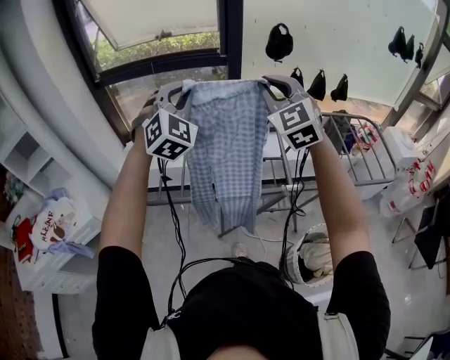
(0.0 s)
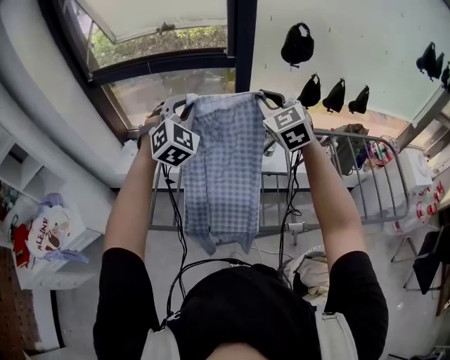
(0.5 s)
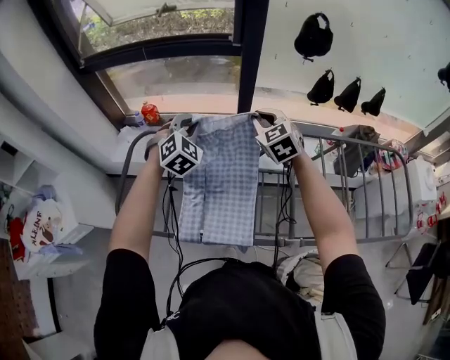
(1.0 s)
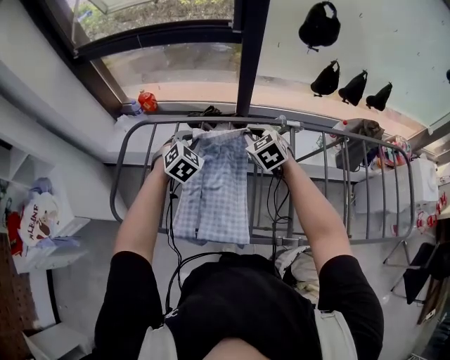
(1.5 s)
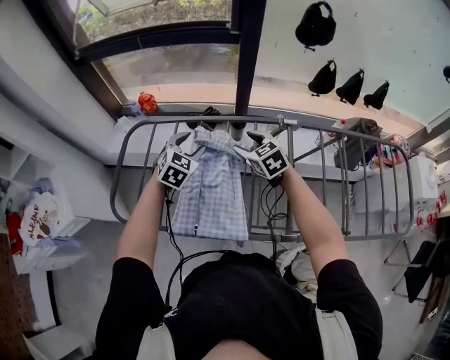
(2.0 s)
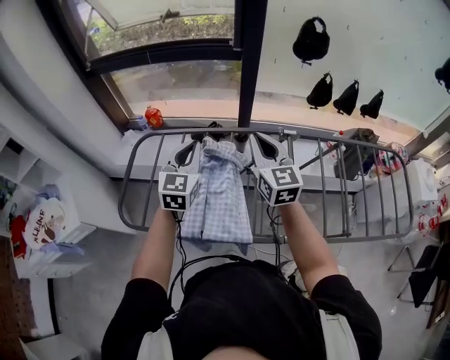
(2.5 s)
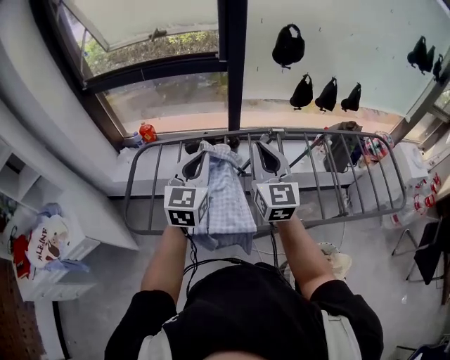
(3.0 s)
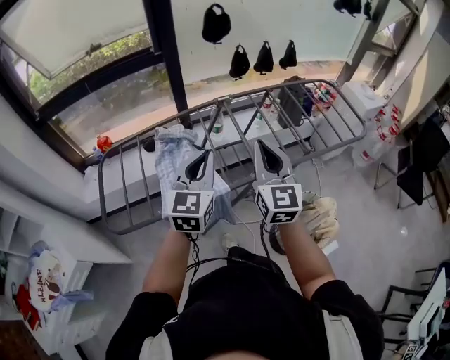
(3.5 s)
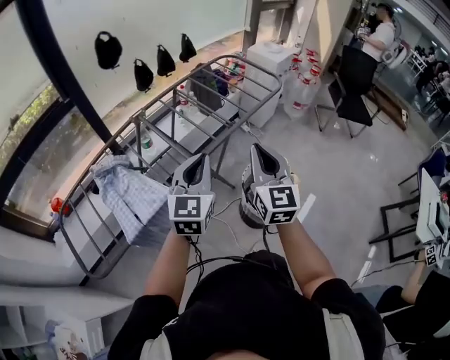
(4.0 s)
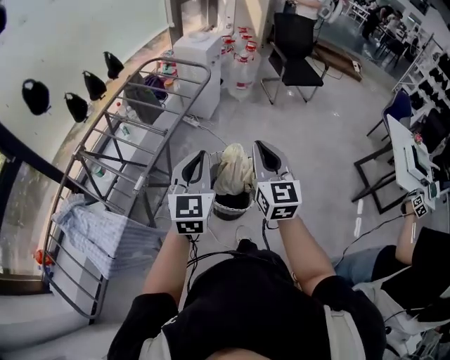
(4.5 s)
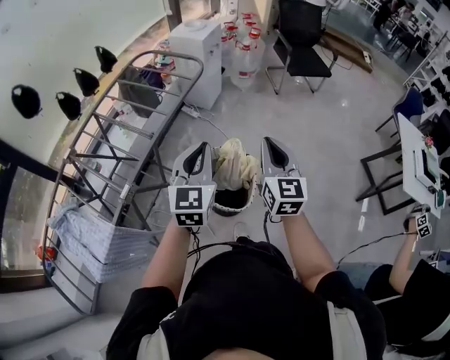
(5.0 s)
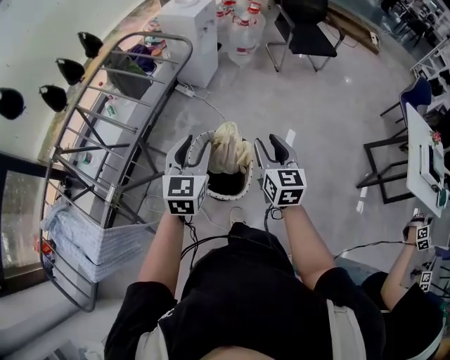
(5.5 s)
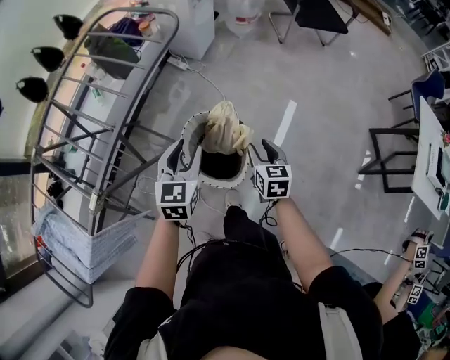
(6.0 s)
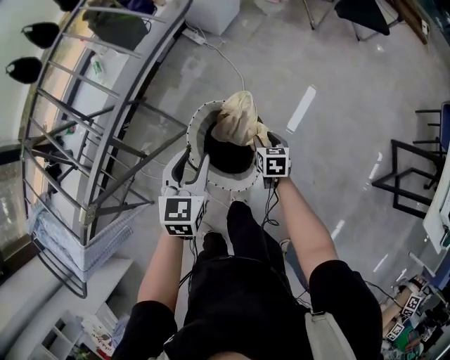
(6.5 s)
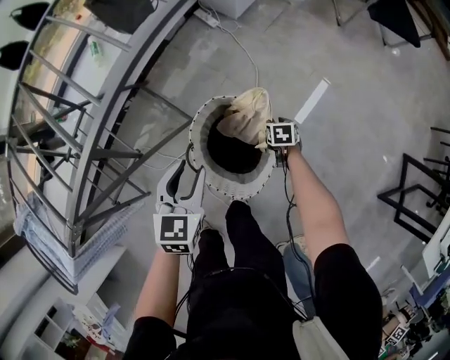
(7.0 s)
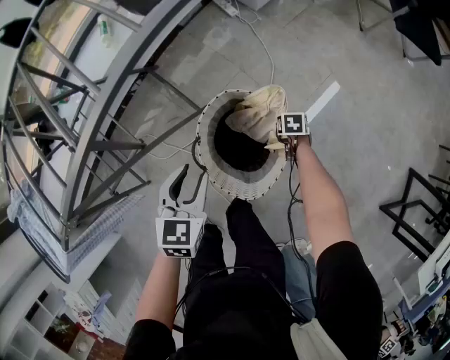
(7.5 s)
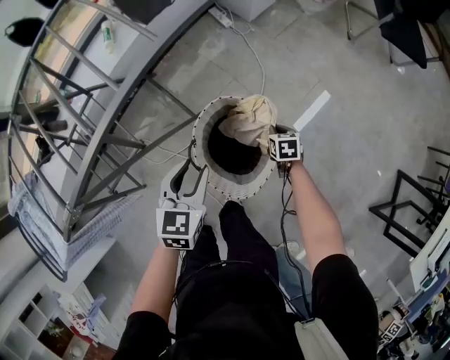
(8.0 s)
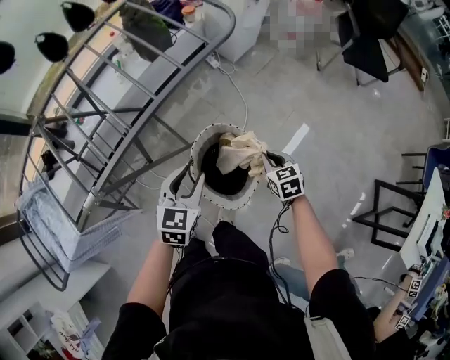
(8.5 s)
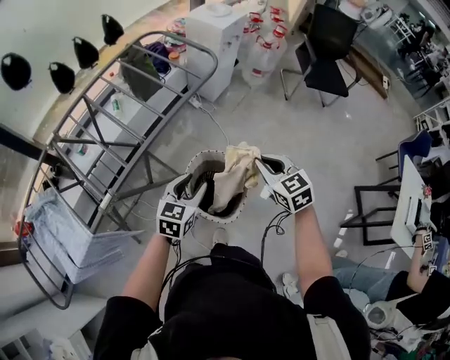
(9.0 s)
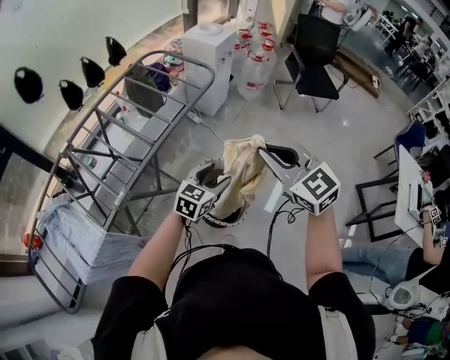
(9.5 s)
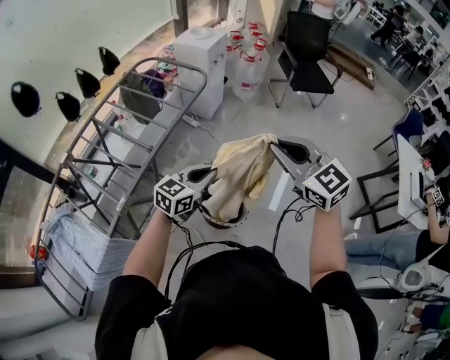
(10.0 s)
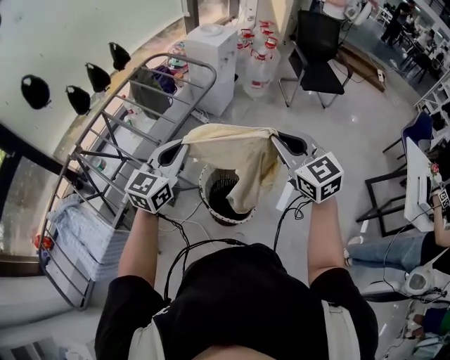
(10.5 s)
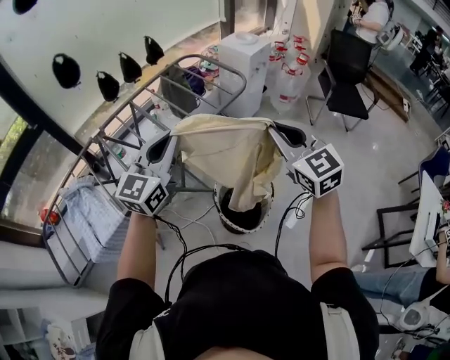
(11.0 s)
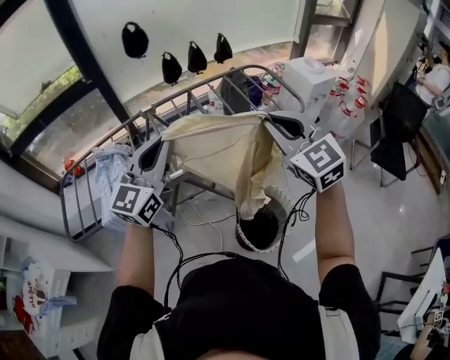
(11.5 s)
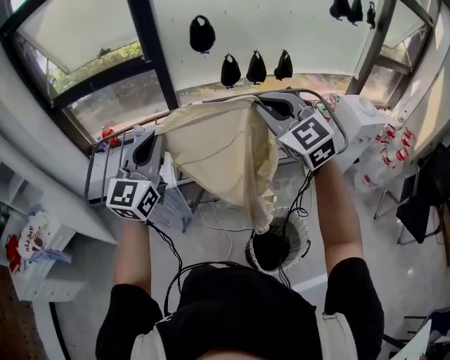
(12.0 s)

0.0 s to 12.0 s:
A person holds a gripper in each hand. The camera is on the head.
0.0 to 2.0 s: Both grippers travel together downward and forward, approximately 40 cm. The left gripper changes its angle by some 40 degrees, and opens up. Meanwhile the right gripper angles its fingers downward, by roughly 40 degrees, and opens.
2.0 to 4.0 s: The two grippers travel together, about 50 cm. The left gripper tips its fingers upward by approximately 30 degrees, and closes; the right gripper tilts its fingers roughly 40 degrees upward, and closes its fingers.
4.0 to 6.0 s: The right gripper goes roughly 50 cm to the right, downward and forward, tips its fingers downward by approximately 40 degrees, and opens up; the left gripper moves to the right, forward and downward, approximately 40 cm, rotates roughly 30 degrees, and opens its fingers.
6.0 to 8.0 s: The right gripper shifts approximately 30 cm downward, changes its angle by approximately 30 degrees, and closes its fingers. The left gripper goes roughly 15 cm downward.
8.0 to 10.0 s: The right gripper moves upward, roughly 70 cm, and tilts its fingers approximately 50 degrees upward; the left gripper moves upward, approximately 25 cm, rotates roughly 50 degrees, and closes its fingers.
10.0 to 12.0 s: The left gripper changes place by some 50 cm, and changes its angle by some 90 degrees. Meanwhile the right gripper shifts by some 40 cm, and changes its angle by about 50 degrees.

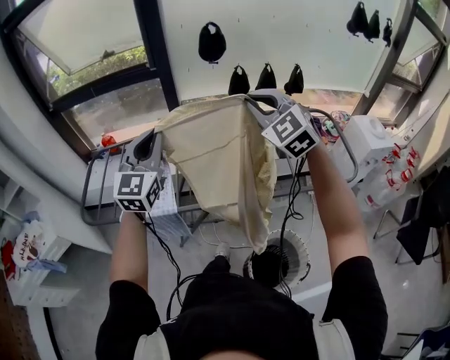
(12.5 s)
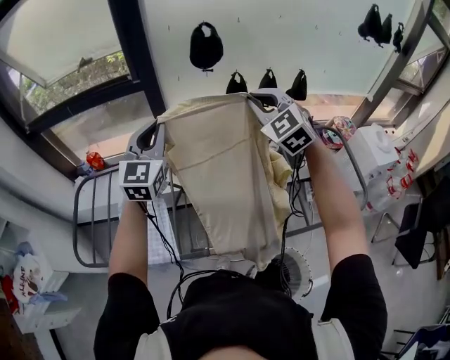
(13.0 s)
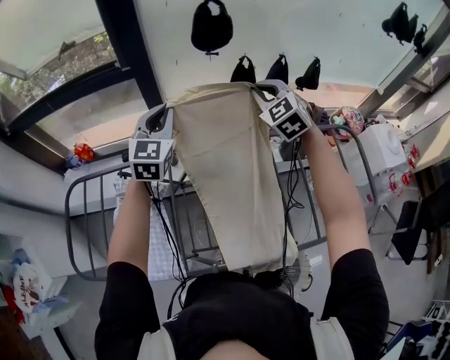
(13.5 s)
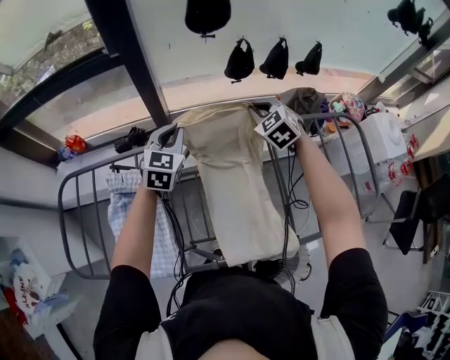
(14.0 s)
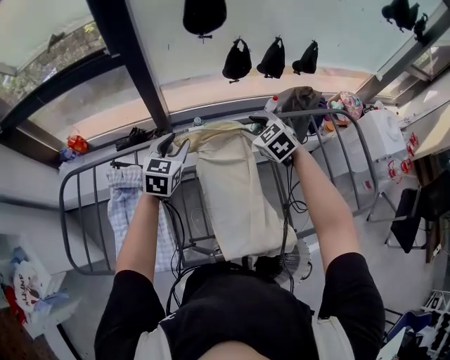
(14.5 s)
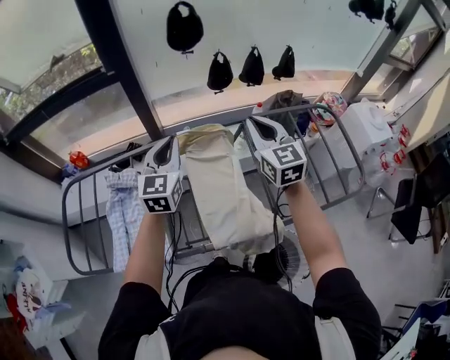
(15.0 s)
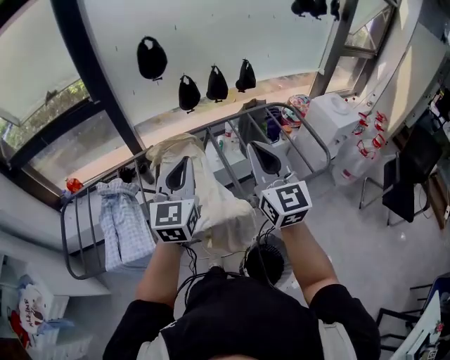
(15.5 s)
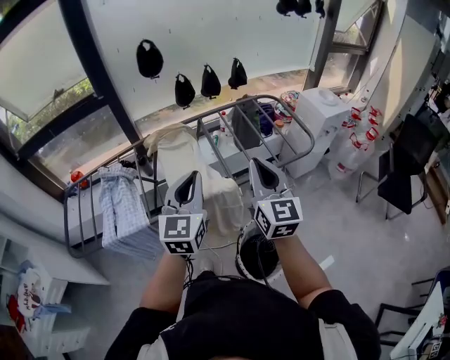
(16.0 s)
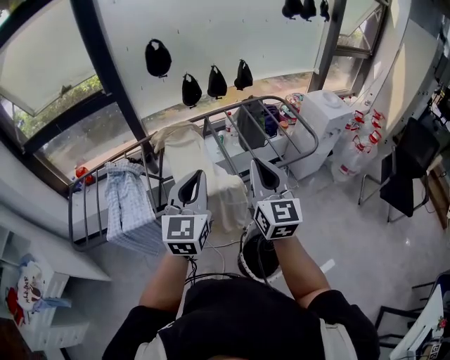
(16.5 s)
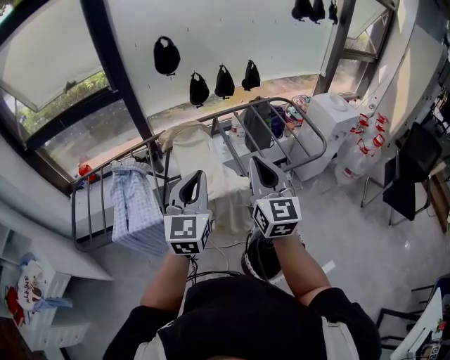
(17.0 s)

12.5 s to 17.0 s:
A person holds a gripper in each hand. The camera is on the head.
12.5 to 14.5 s: The left gripper moves forward and downward, about 40 cm, angles its fingers downward, by some 30 degrees, and opens its fingers. Meanwhile the right gripper heads downward and forward, covering roughly 40 cm, tilts its fingers some 30 degrees downward, and opens its fingers.
14.5 to 17.0 s: Both grippers are carried backward, approximately 50 cm. The two grippers go roughly 20 cm upward. The left gripper turns by some 20 degrees, and closes up. Meanwhile the right gripper angles its fingers upward, by approximately 50 degrees, and closes.

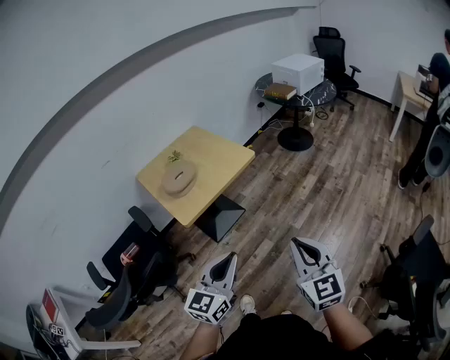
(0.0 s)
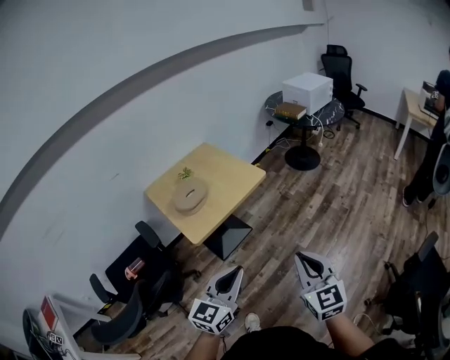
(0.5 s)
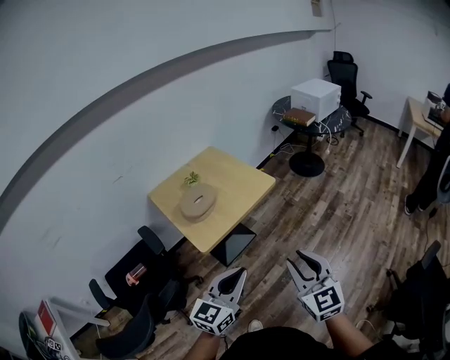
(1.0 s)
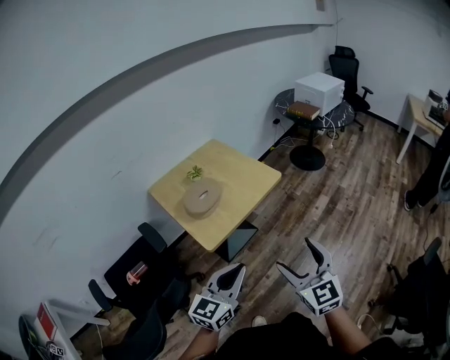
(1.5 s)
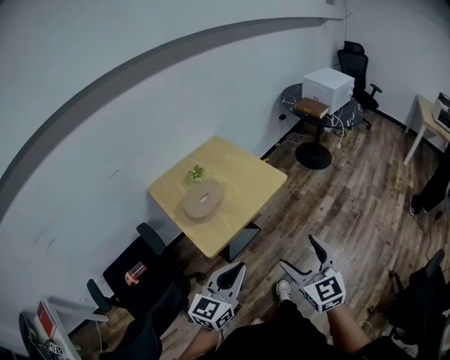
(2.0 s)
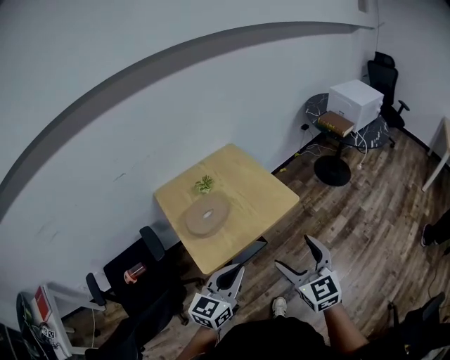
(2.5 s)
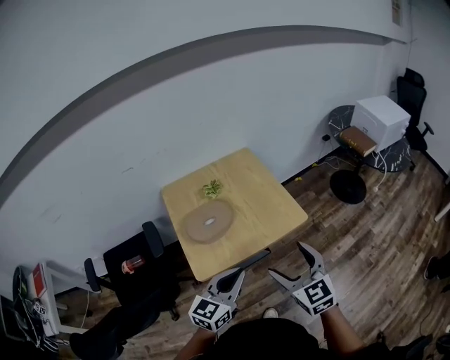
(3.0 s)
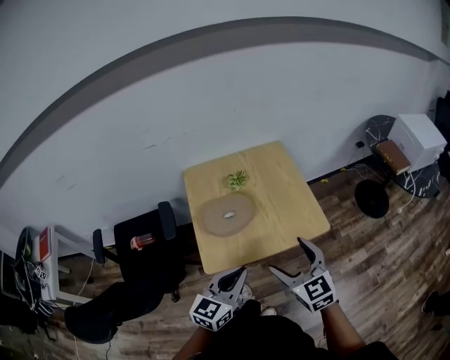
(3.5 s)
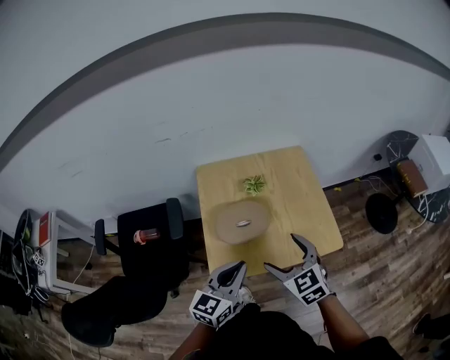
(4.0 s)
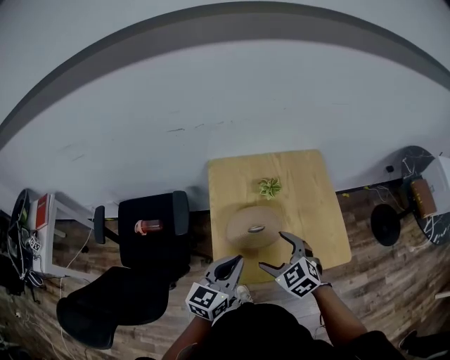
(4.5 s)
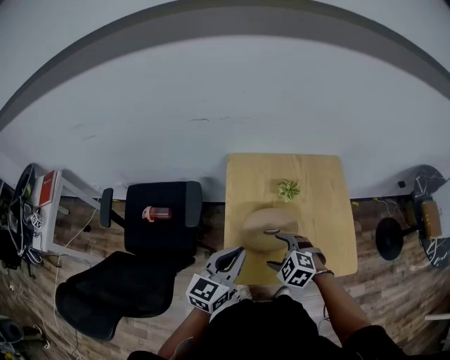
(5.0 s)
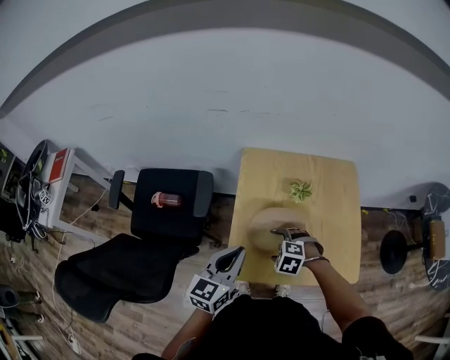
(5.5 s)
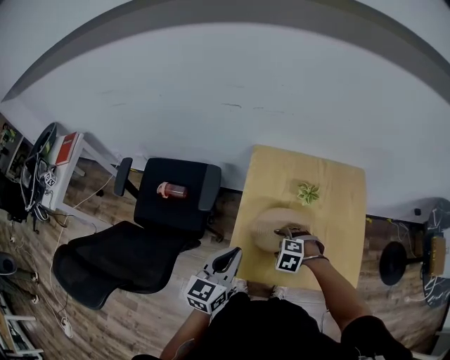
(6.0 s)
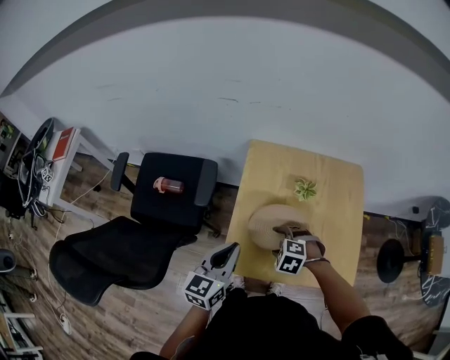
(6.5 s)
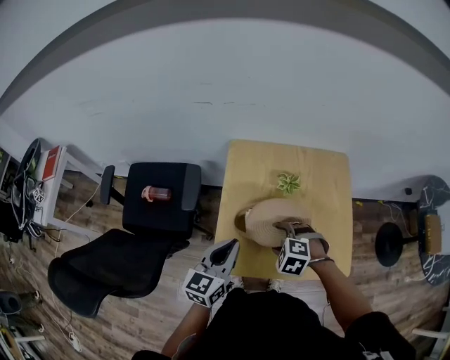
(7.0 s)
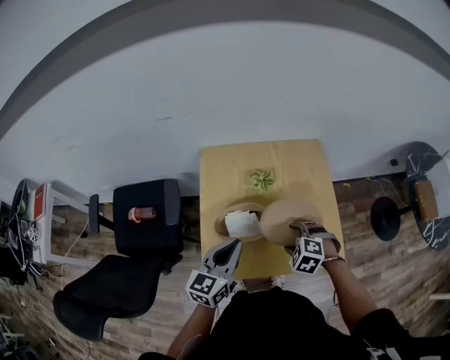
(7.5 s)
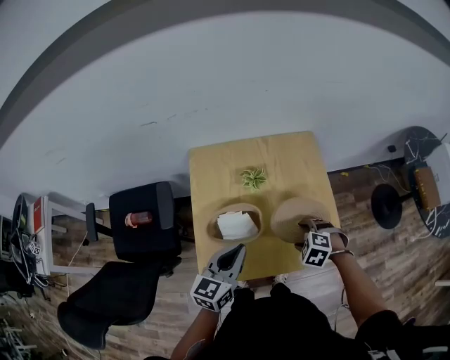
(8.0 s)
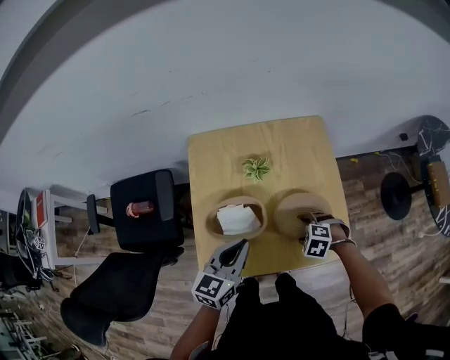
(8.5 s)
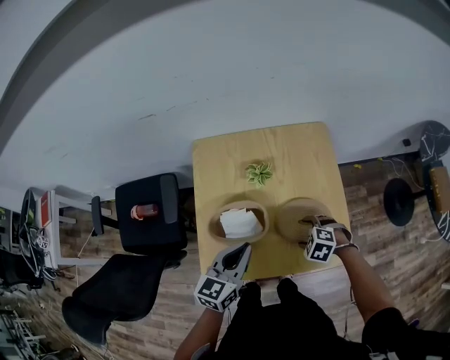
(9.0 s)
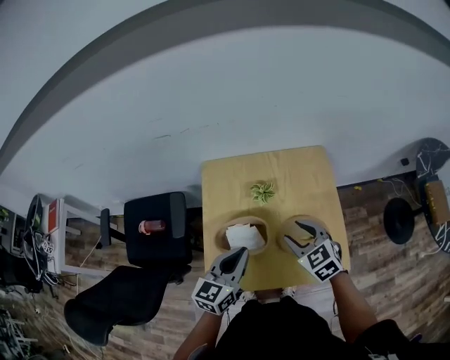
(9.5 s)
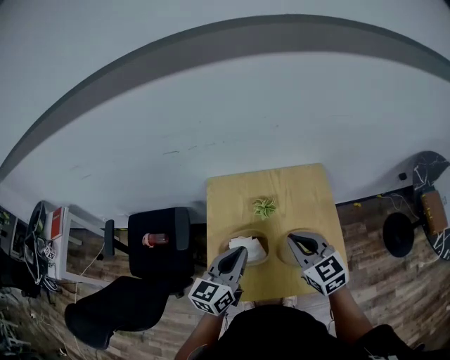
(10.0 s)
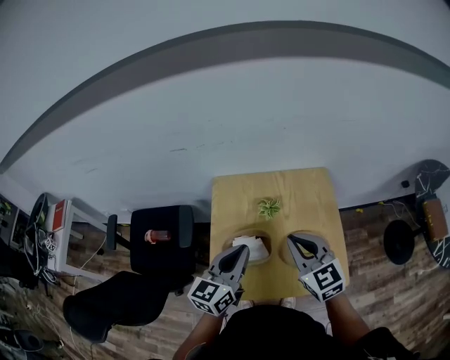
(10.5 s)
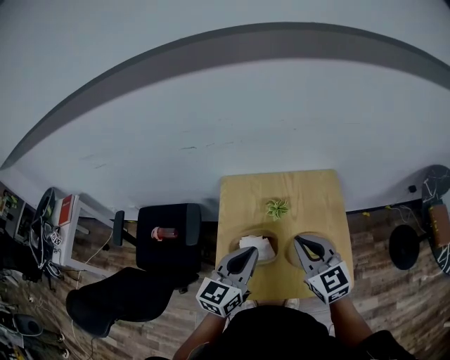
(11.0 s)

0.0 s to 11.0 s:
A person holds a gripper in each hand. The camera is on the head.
0.0 to 2.0 s: The two grippers go approximately 20 cm forward and to the left. The right gripper opens its fingers.
2.0 to 3.5 s: The right gripper shifts by roughly 25 cm, and turns by approximately 30 degrees. Meanwhile the left gripper ends up approximately 20 cm from where it was, and changes its angle by about 30 degrees.
3.5 to 5.5 s: The left gripper ends up some 20 cm from where it was, and turns by about 30 degrees. Meanwhile the right gripper ends up approximately 35 cm from where it was, and angles its fingers downward, by roughly 50 degrees.
5.5 to 7.5 s: The left gripper ends up roughly 10 cm from where it was. Meanwhile the right gripper shifts by approximately 15 cm.
7.5 to 9.0 s: The left gripper changes place by approximately 5 cm, while the right gripper travels downward by about 10 cm.
9.0 to 11.0 s: The left gripper moves upward, about 15 cm, while the right gripper travels upward by approximately 30 cm, points its fingers roughly 60 degrees further upward, and closes.
